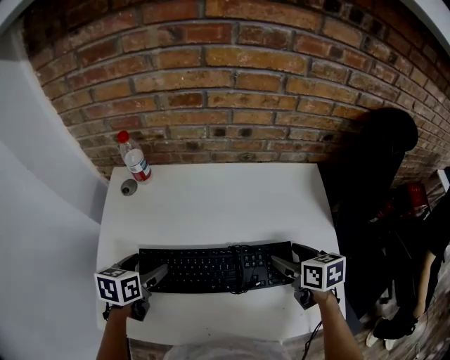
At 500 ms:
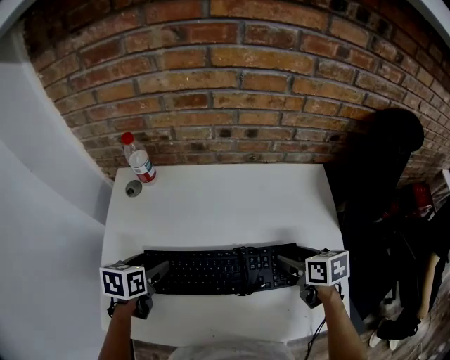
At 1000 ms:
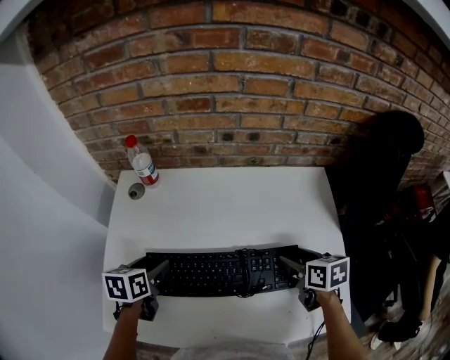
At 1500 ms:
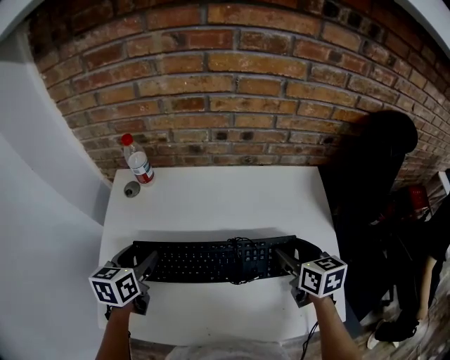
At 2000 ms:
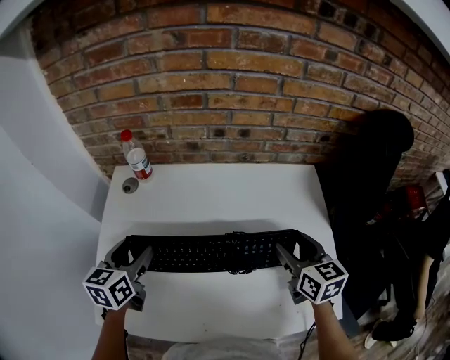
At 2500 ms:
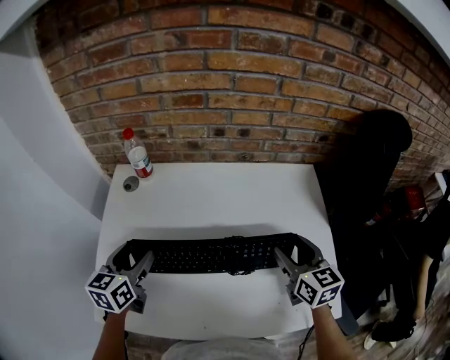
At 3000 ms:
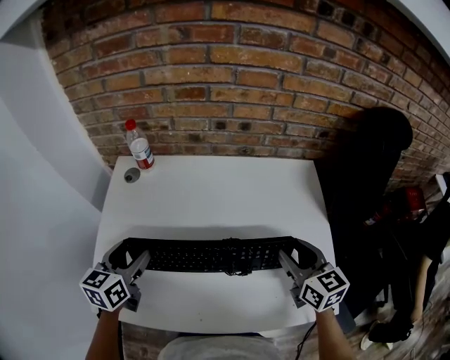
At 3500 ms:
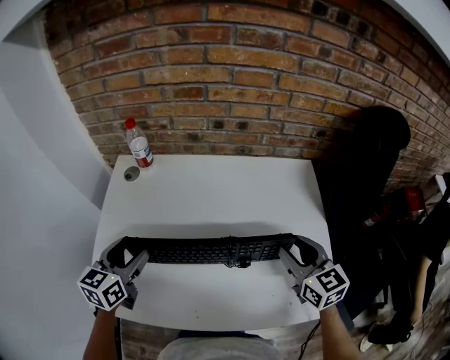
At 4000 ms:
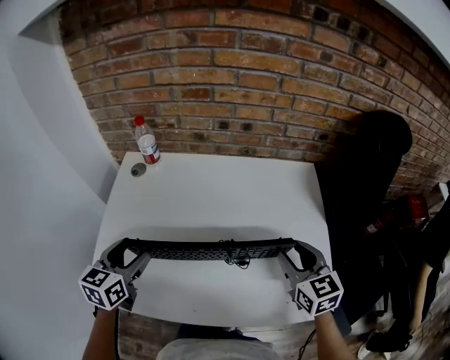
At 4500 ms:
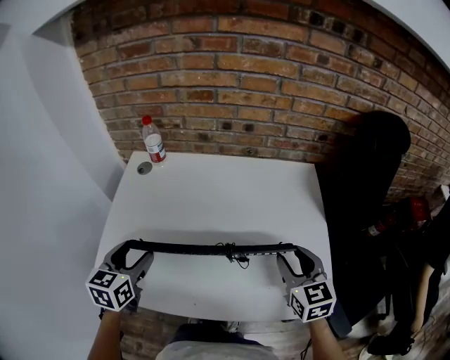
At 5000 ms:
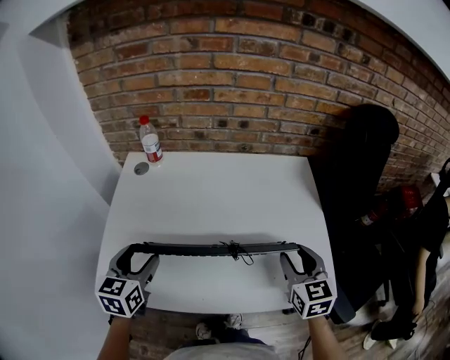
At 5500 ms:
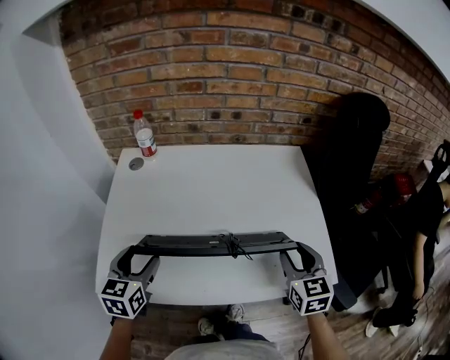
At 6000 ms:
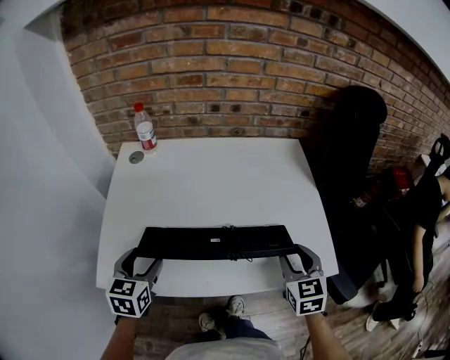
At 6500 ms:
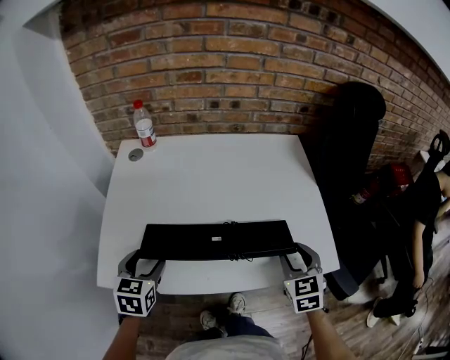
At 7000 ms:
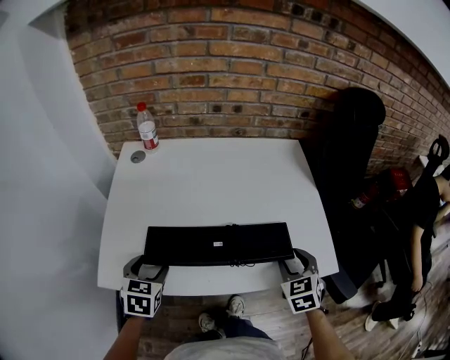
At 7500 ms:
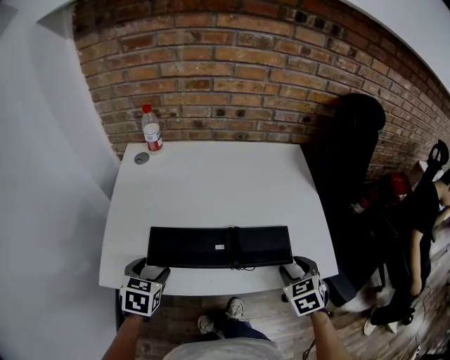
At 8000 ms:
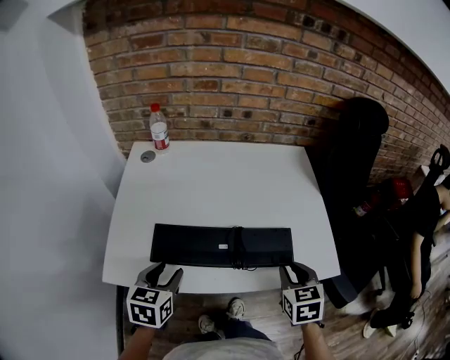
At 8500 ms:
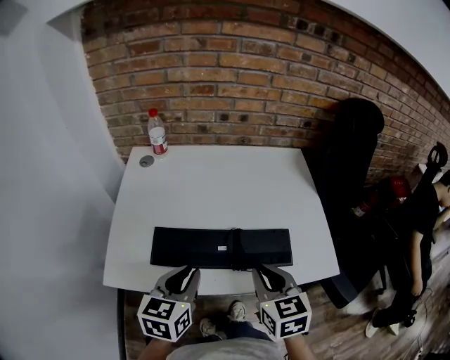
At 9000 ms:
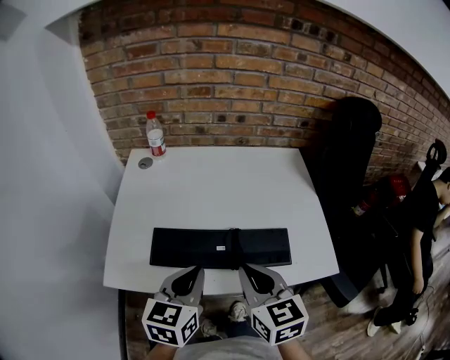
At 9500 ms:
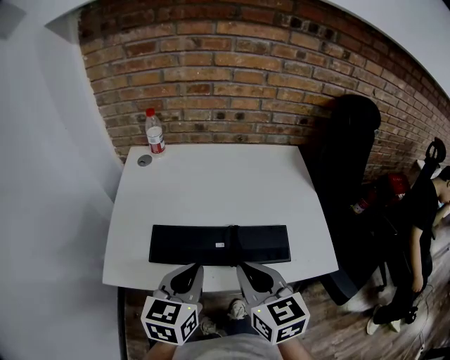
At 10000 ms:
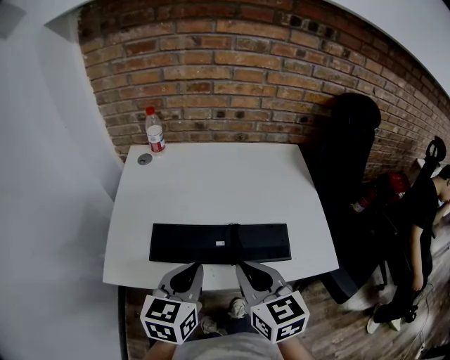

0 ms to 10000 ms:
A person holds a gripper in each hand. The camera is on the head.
0 ms to 2000 ms: The grippers both shift upward by roughly 10 cm. The right gripper swivels about 20 degrees, while the left gripper turns by roughly 20 degrees.
2000 ms to 4000 ms: The grippers both shift backward by some 10 cm.
4000 ms to 6000 ms: The right gripper travels backward by some 10 cm, while the left gripper moves backward and downward, some 10 cm.
6000 ms to 8000 ms: The right gripper ends up approximately 5 cm from where it was, while the left gripper ends up some 5 cm from where it was.
8000 ms to 10000 ms: The right gripper moves to the left and upward, approximately 15 cm, and changes its angle by approximately 30 degrees; the left gripper travels upward and to the right by about 10 cm, and closes.

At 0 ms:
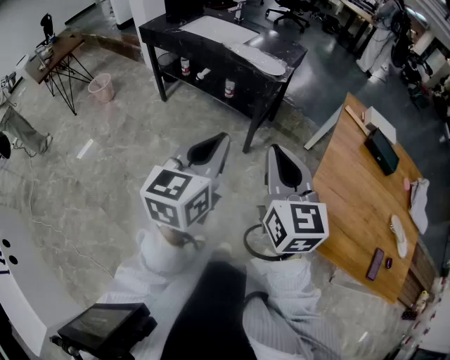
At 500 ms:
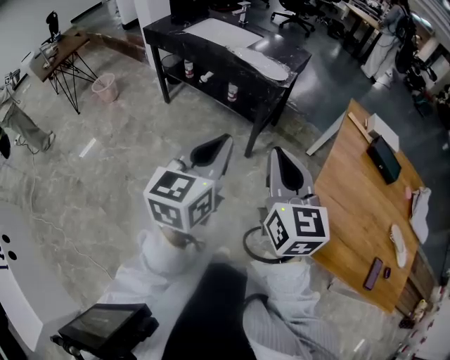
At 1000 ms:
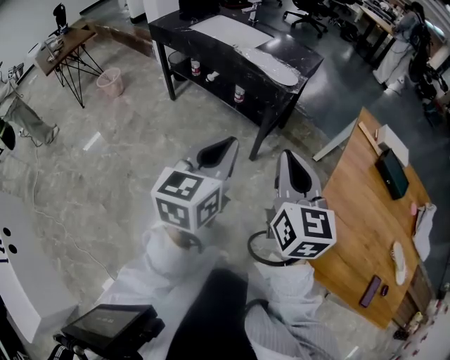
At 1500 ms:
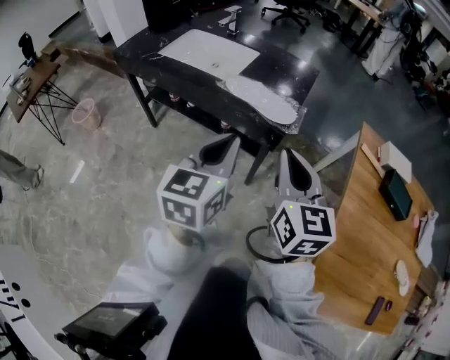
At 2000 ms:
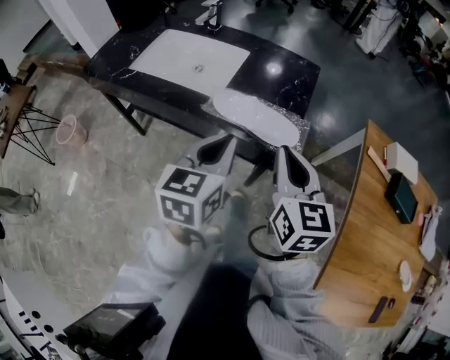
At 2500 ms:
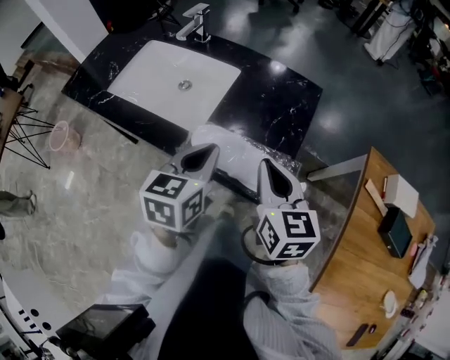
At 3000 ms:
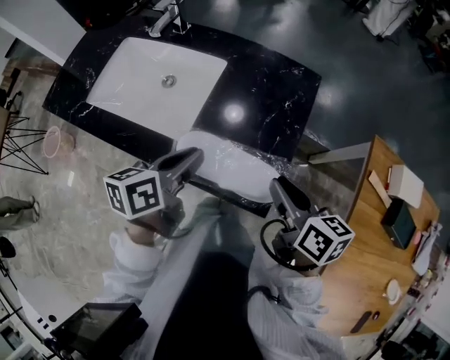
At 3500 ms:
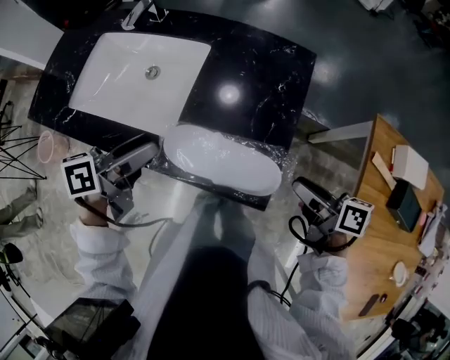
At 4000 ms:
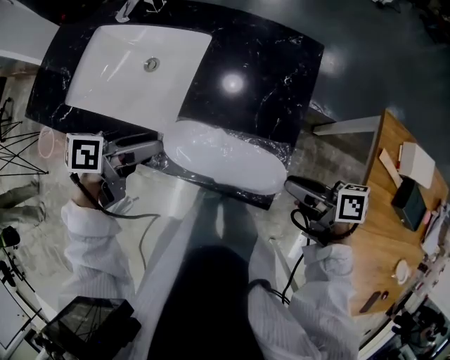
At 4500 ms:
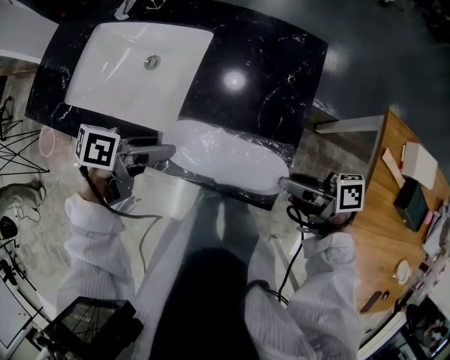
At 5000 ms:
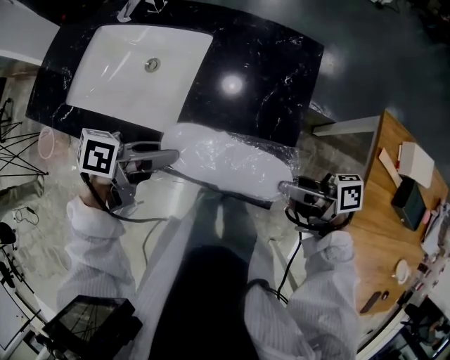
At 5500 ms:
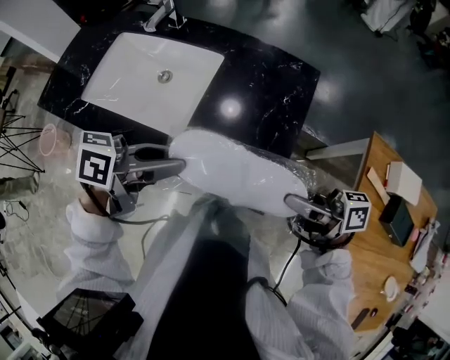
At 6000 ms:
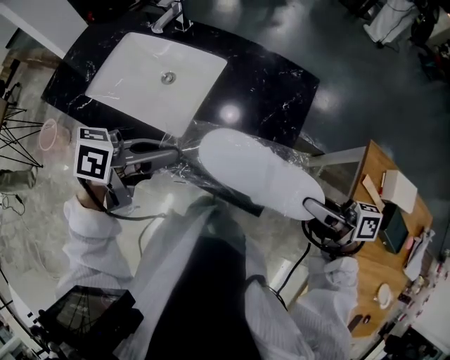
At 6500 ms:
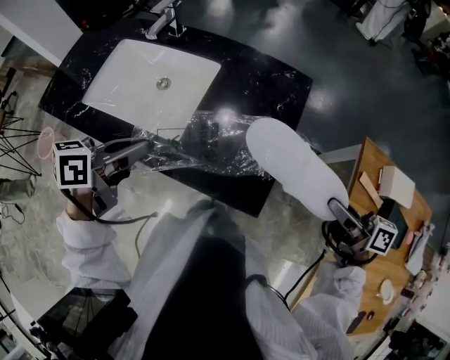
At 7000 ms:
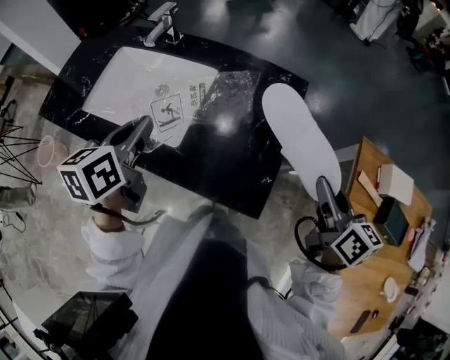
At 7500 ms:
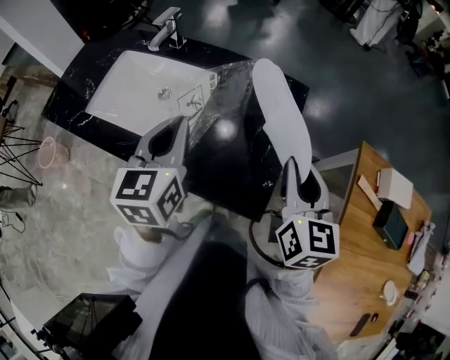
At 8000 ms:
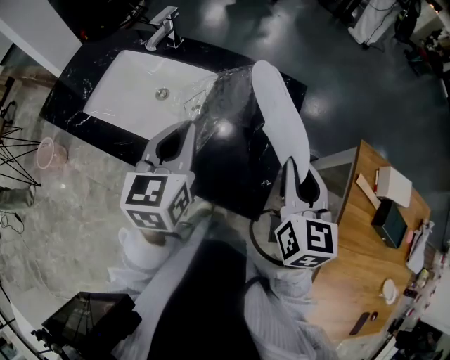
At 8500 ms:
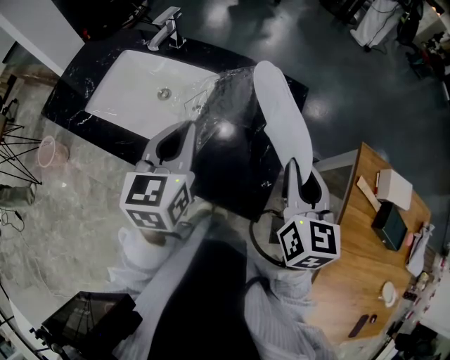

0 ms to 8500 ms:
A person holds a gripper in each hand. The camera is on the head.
0 ms to 2000 ms: Both grippers are carried forward, about 50 cm.
2000 ms to 4000 ms: The right gripper shifts roughly 20 cm downward, swivels roughly 70 degrees, and opens up; the left gripper moves roughly 25 cm, swivels roughly 60 degrees, and opens its fingers.
4000 ms to 6500 ms: Both grippers move upward, roughly 10 cm. The left gripper swivels roughly 20 degrees, and closes.
6500 ms to 8500 ms: The right gripper moves to the left and forward, approximately 15 cm, and turns by some 60 degrees. The left gripper moves to the right and forward, roughly 10 cm, and turns by about 50 degrees.

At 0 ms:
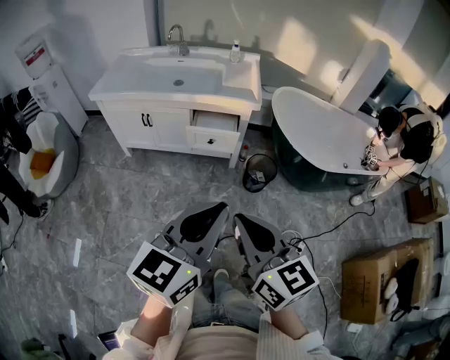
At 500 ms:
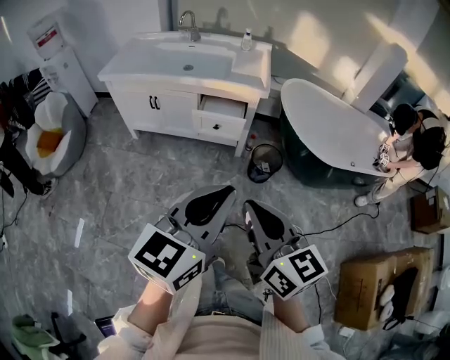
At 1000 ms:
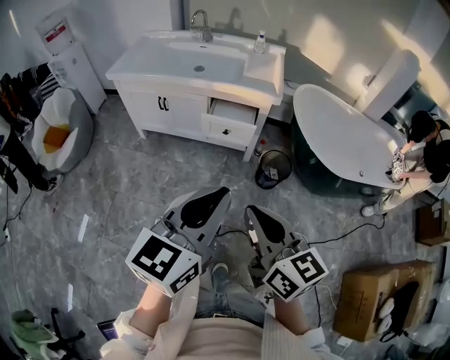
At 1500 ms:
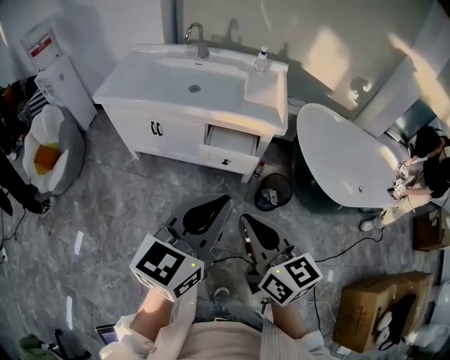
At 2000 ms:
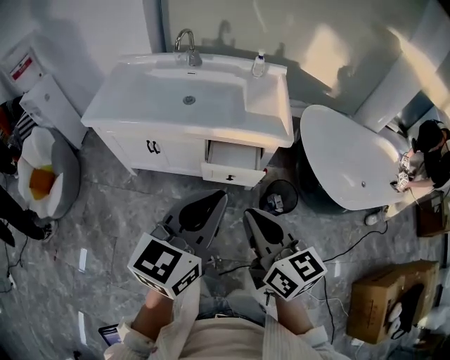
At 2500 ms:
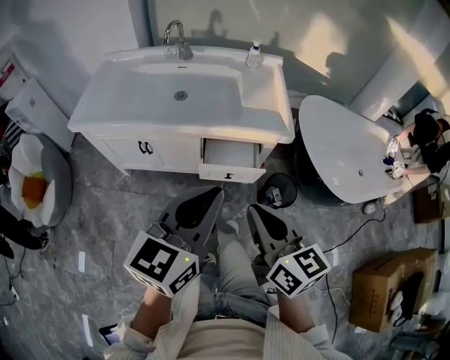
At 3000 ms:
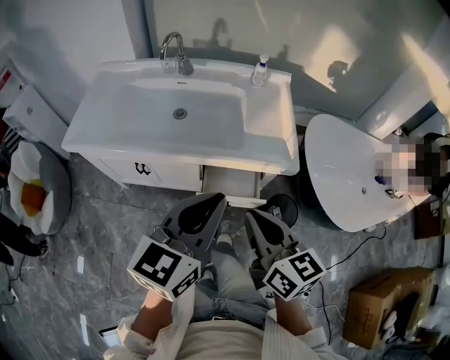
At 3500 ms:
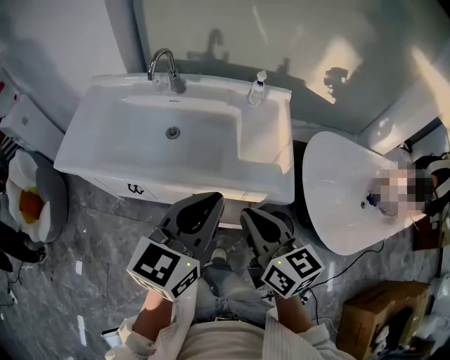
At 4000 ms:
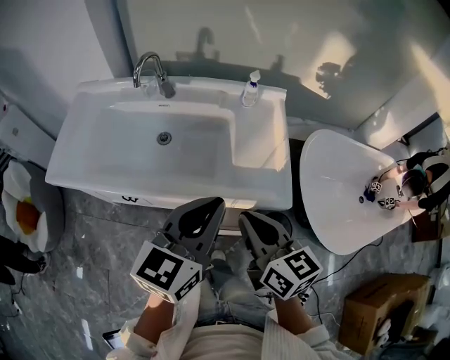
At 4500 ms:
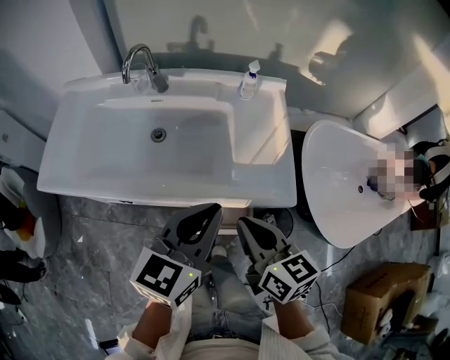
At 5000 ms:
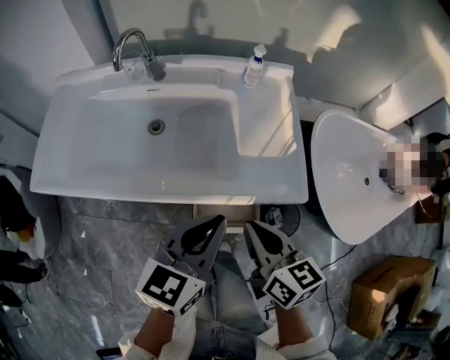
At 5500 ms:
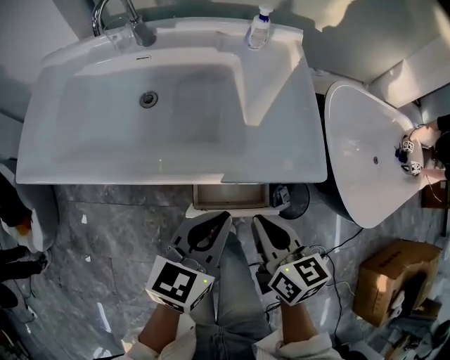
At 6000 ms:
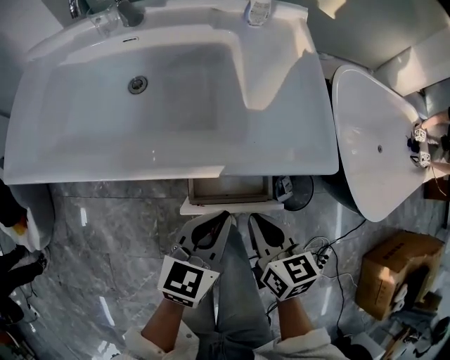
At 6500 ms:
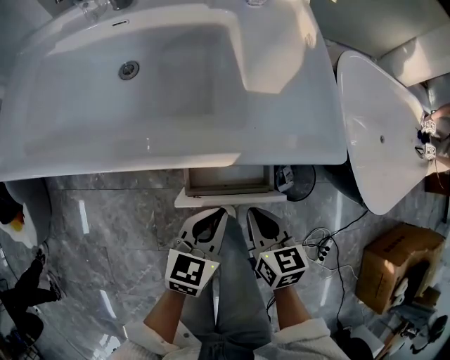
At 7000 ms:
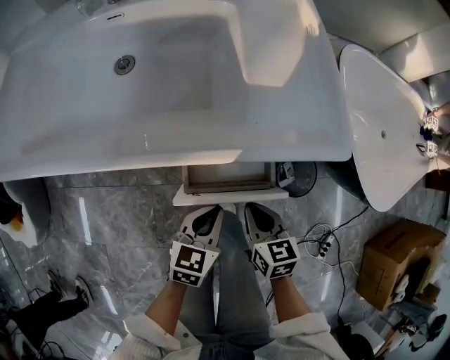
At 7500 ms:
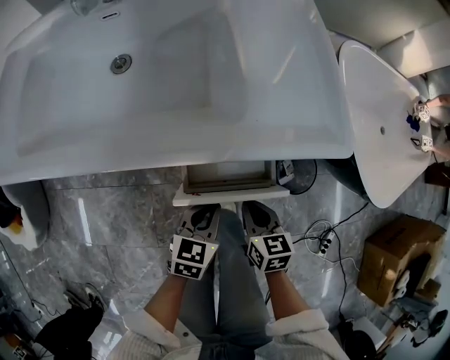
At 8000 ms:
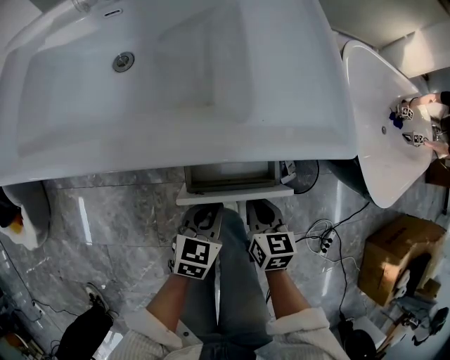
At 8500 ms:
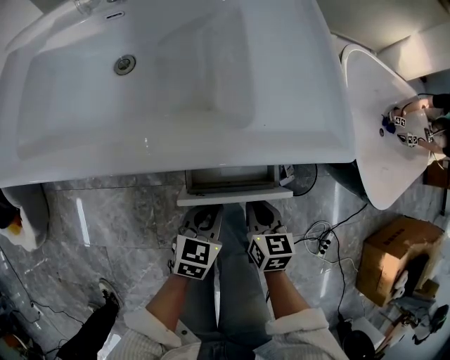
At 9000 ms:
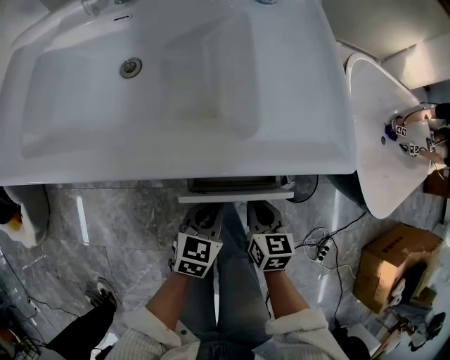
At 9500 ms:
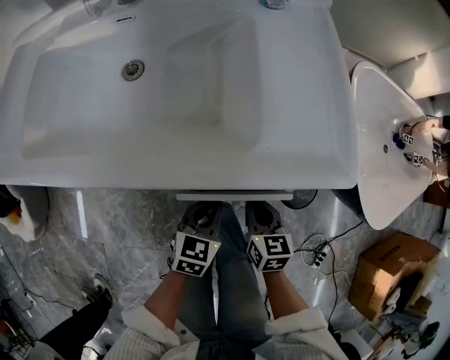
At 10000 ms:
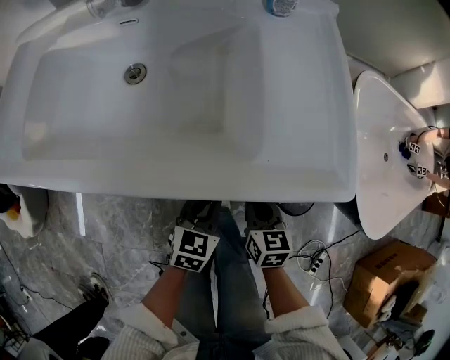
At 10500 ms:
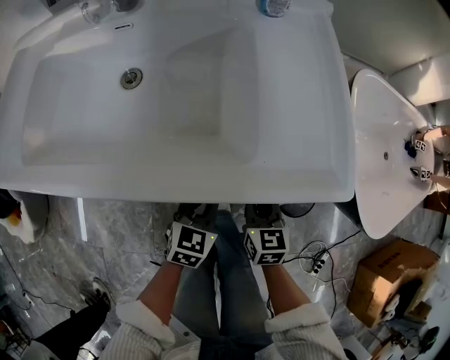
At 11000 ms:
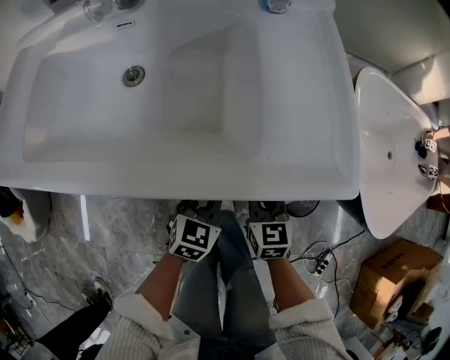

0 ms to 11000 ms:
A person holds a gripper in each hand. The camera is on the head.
0 ms to 2000 ms: Both grippers move forward, approximately 25 cm.
2000 ms to 3500 ms: The grippers both shift forward by approximately 25 cm.
3500 ms to 5500 ms: The grippers both shift downward by roughly 20 cm.
5500 ms to 7500 ms: The grippers both shift downward by about 25 cm.
7500 ms to 9000 ms: The grippers move only a little.
9000 ms to 11000 ms: Both grippers travel together forward, about 10 cm.
